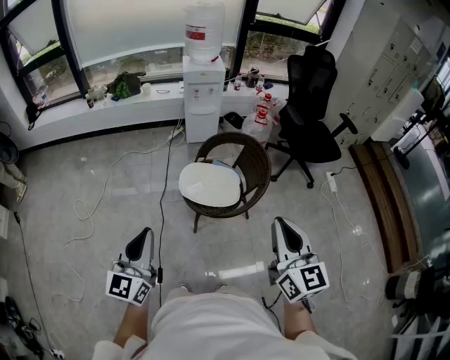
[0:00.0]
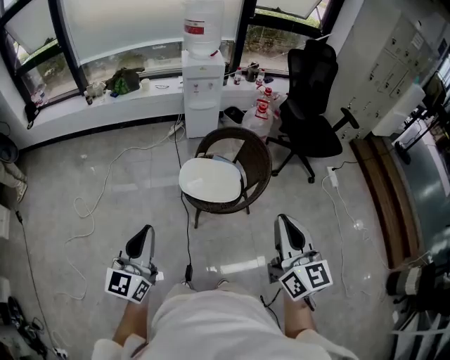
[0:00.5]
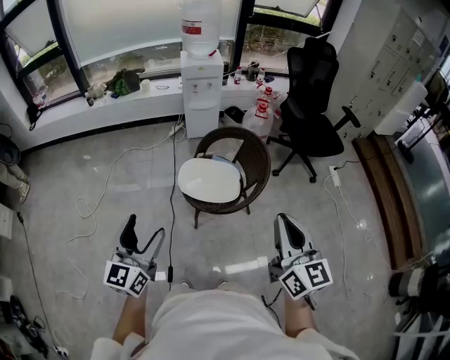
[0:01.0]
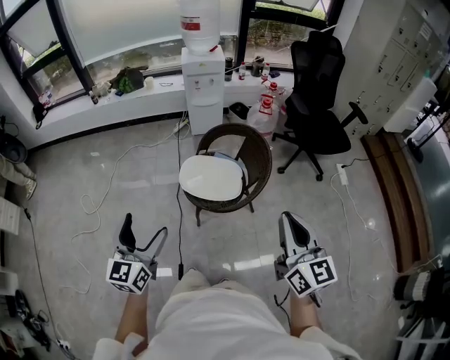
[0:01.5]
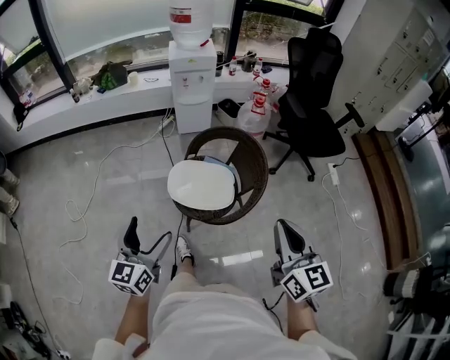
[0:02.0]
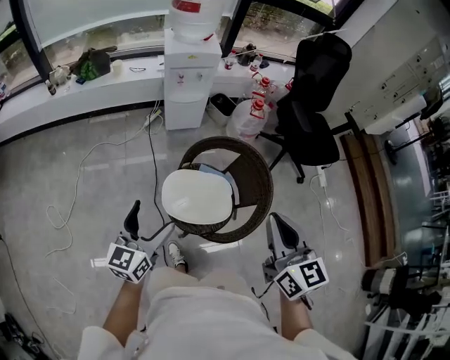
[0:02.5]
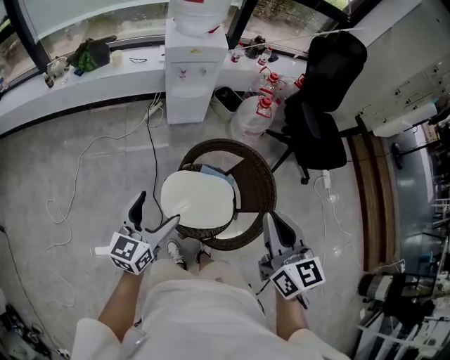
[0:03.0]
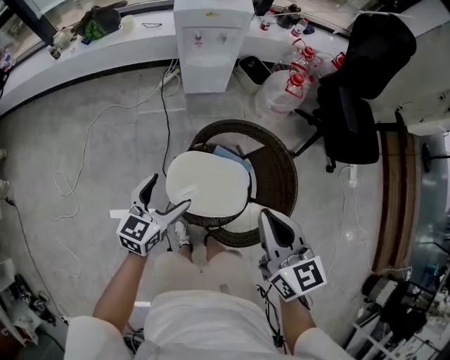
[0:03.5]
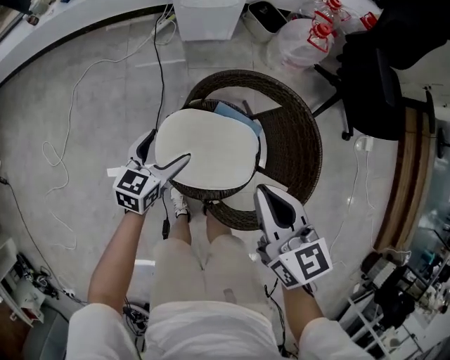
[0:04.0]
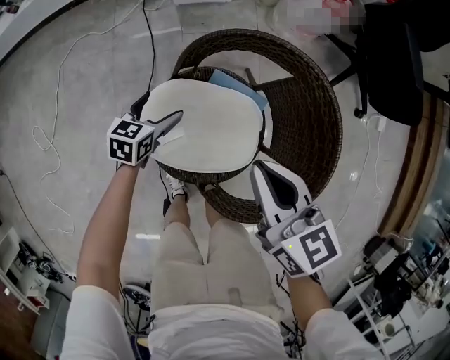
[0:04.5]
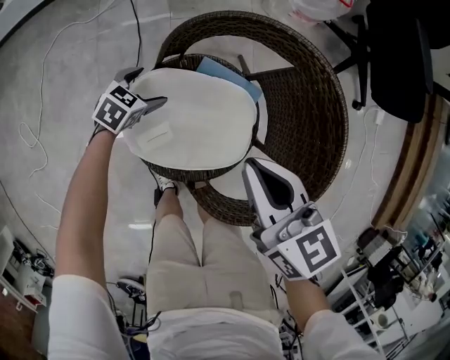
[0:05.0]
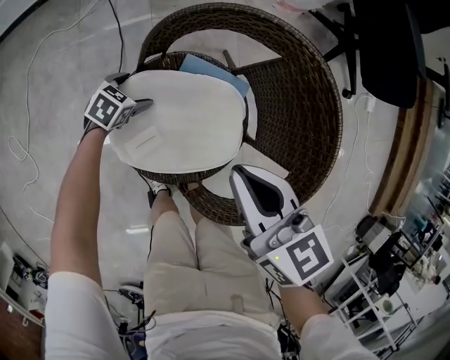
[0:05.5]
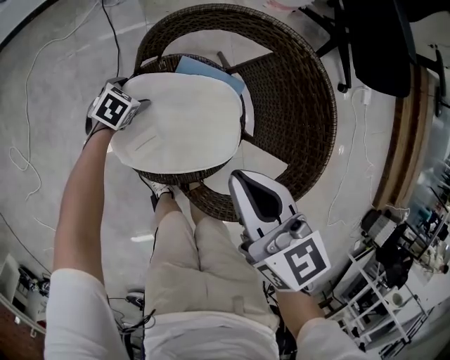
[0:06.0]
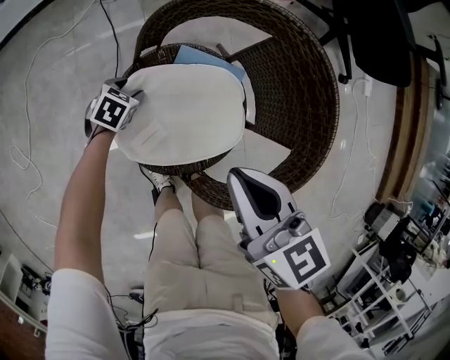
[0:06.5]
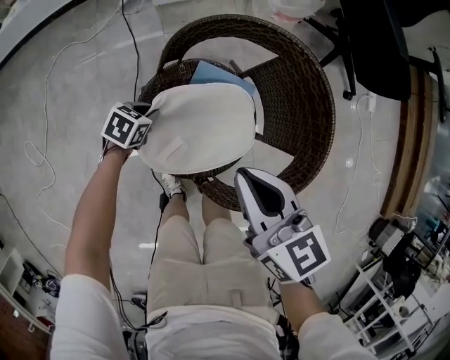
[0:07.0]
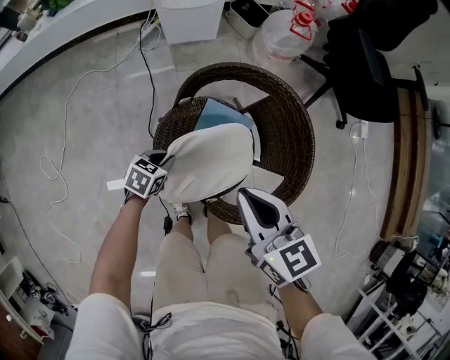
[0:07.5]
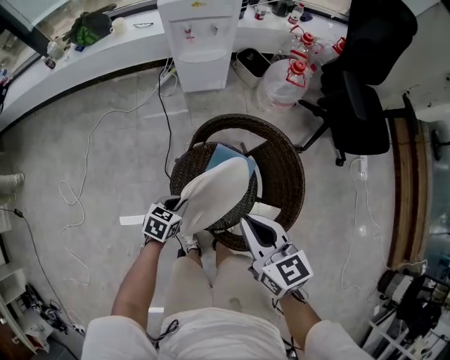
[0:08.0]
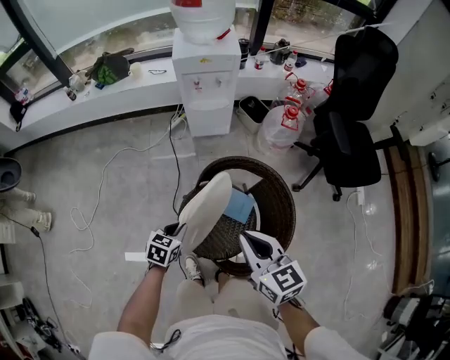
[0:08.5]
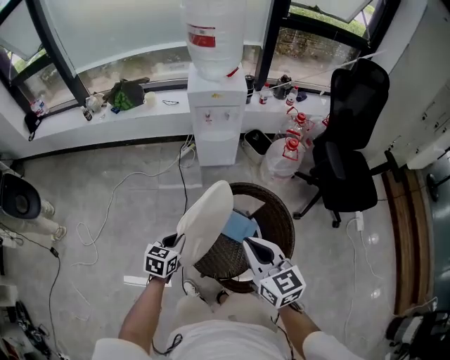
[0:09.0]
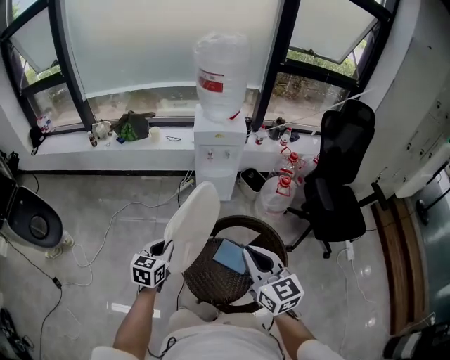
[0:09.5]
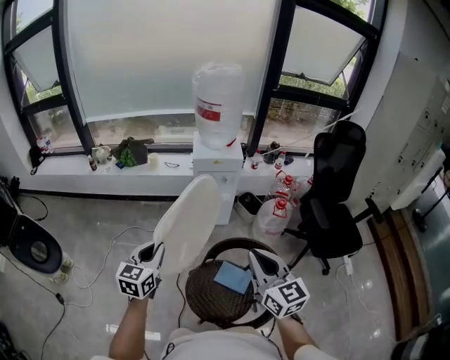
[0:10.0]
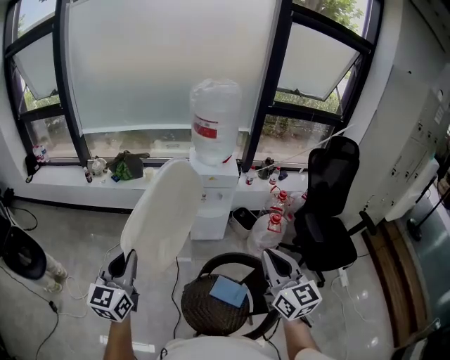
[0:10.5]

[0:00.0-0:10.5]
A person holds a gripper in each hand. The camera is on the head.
0:00.0 to 0:02.0: The left gripper shifts roughly 15 cm forward and downward, and opens up, while the right gripper heads forward, to the right and downward, covering about 15 cm.
0:02.0 to 0:04.0: Both grippers move forward and downward, about 50 cm. The right gripper rotates approximately 30 degrees, while the left gripper swivels roughly 30 degrees.
0:04.0 to 0:06.5: The right gripper goes some 10 cm downward, while the left gripper shifts some 25 cm downward, tilts its fingers roughly 40 degrees downward, and closes.
0:06.5 to 0:08.5: The left gripper moves upward, approximately 30 cm, changes its angle by about 30 degrees, and closes up. Meanwhile the right gripper is displaced upward by about 20 cm.
0:08.5 to 0:10.5: The right gripper travels upward by about 25 cm, and swivels roughly 30 degrees, while the left gripper is displaced upward and to the left by about 50 cm, and angles its fingers upward, by approximately 50 degrees.

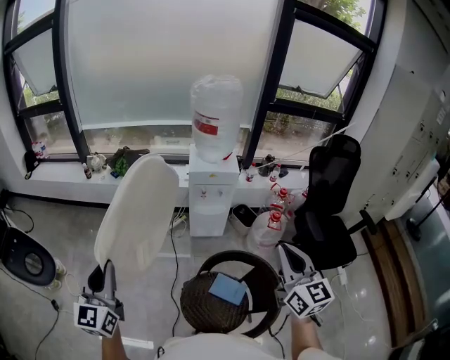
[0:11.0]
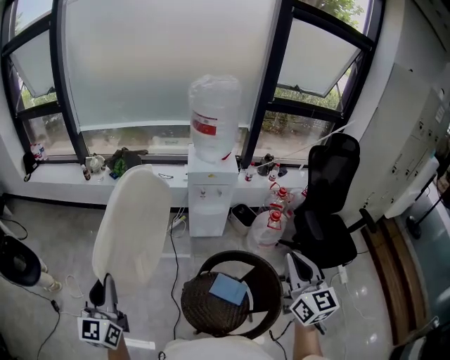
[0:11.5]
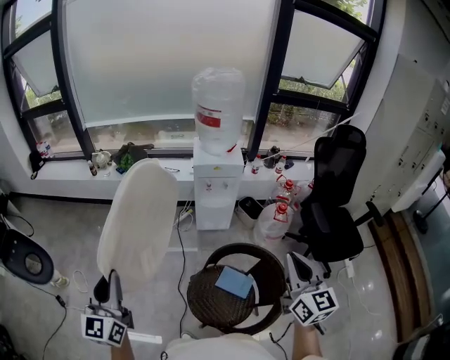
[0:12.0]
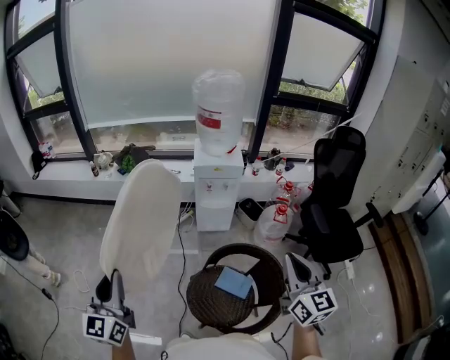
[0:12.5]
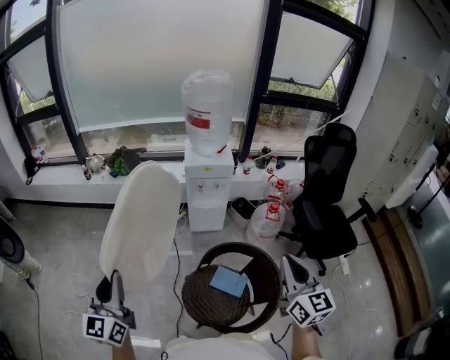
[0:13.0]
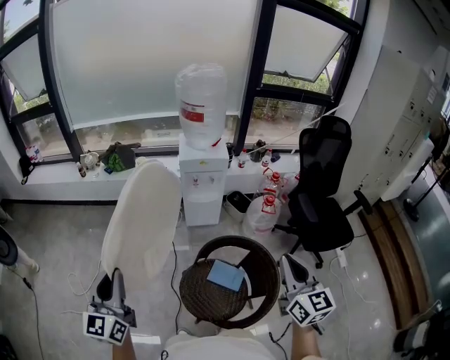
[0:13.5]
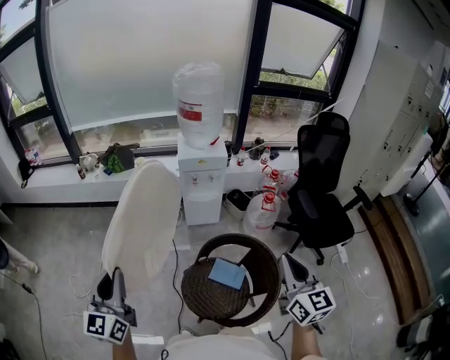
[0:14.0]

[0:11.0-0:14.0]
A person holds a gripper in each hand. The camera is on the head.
0:11.0 to 0:12.5: The left gripper shifts approximately 5 cm backward. Meanwhile the right gripper ends up roughly 5 cm from where it was.
0:12.5 to 0:14.0: The grippers move only a little.

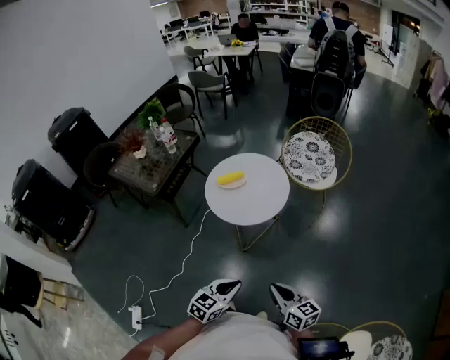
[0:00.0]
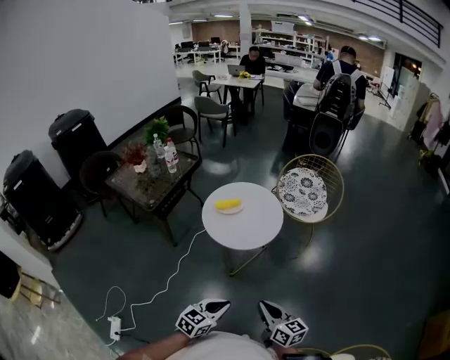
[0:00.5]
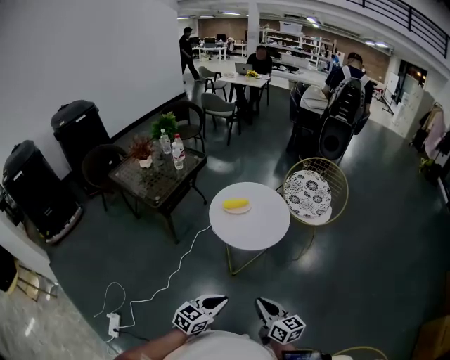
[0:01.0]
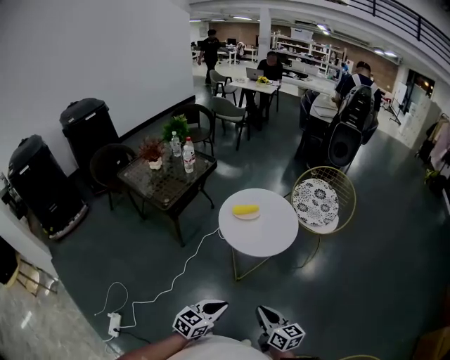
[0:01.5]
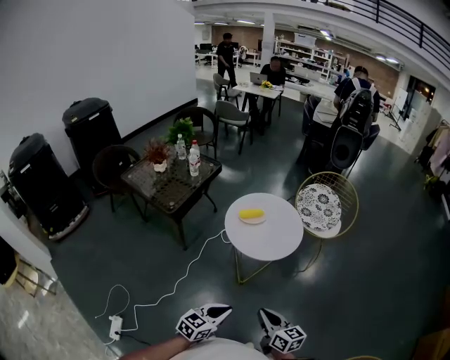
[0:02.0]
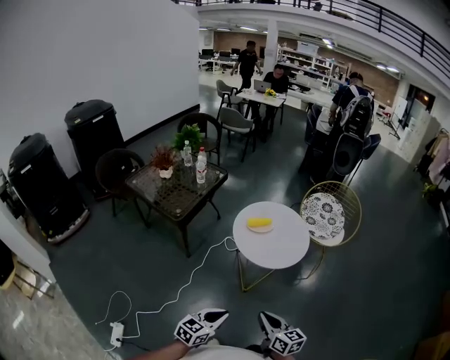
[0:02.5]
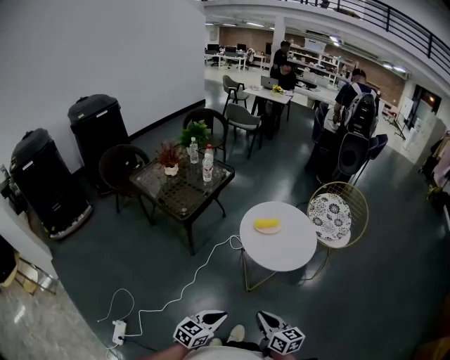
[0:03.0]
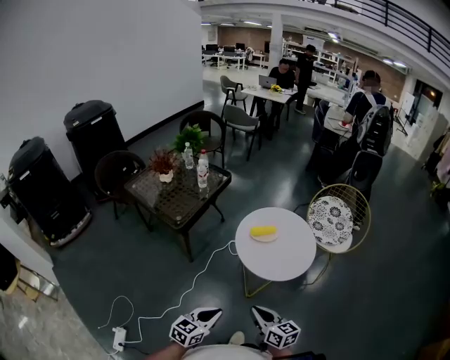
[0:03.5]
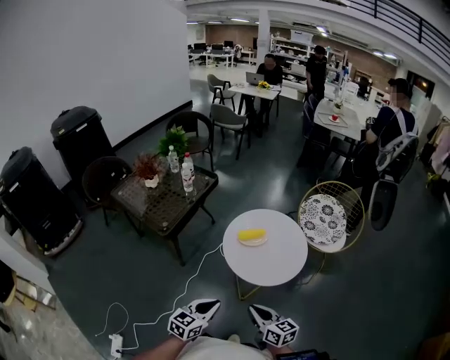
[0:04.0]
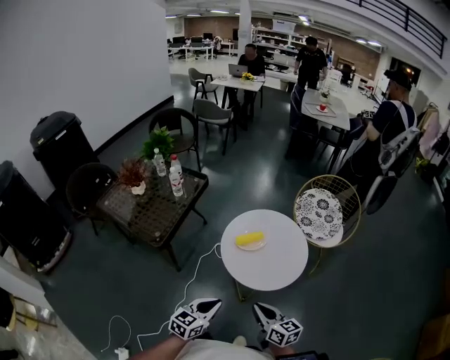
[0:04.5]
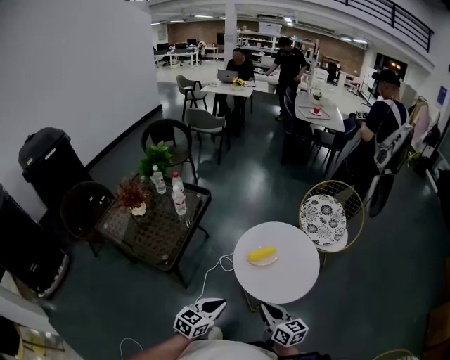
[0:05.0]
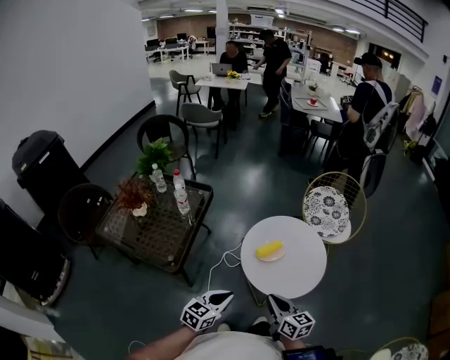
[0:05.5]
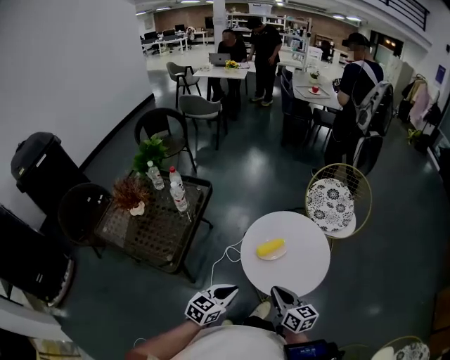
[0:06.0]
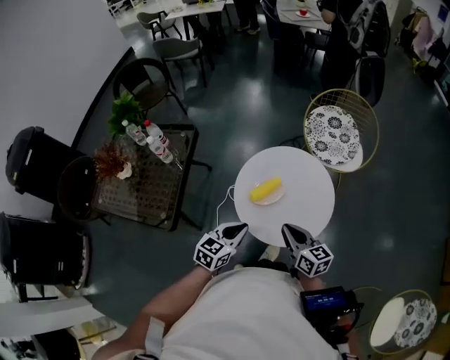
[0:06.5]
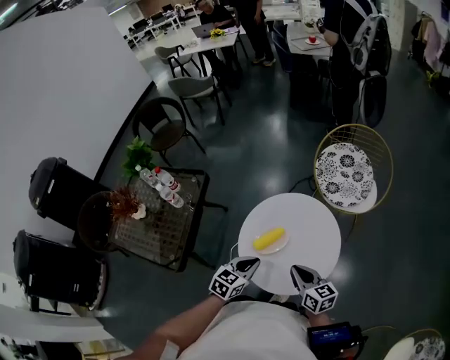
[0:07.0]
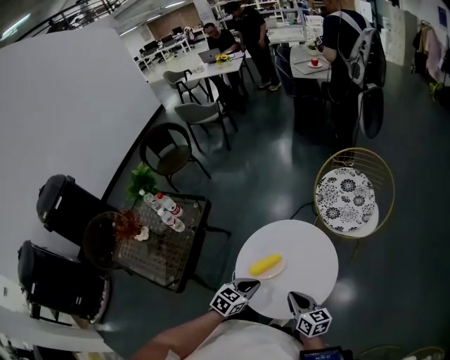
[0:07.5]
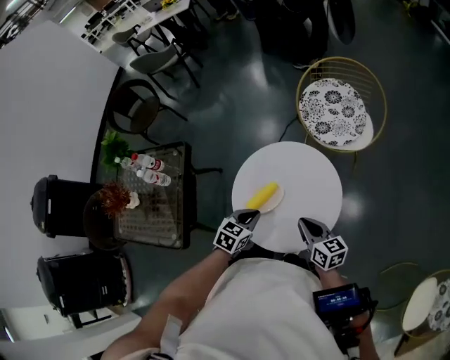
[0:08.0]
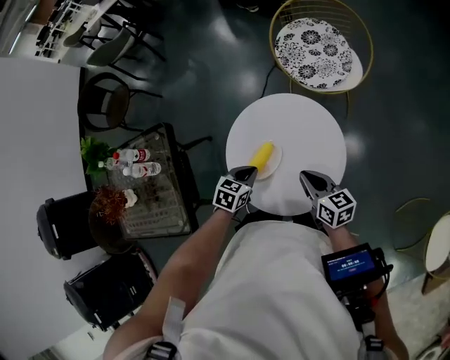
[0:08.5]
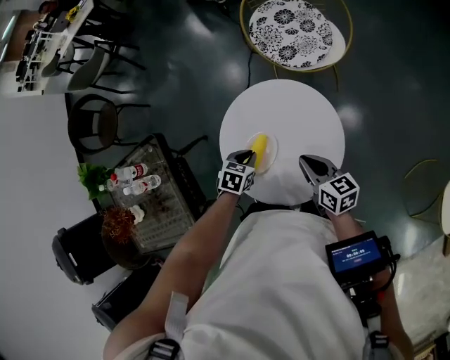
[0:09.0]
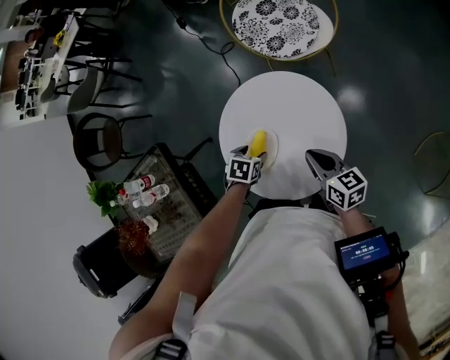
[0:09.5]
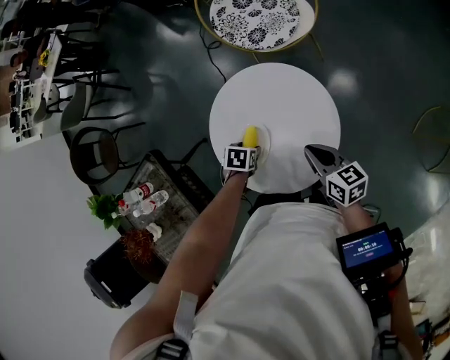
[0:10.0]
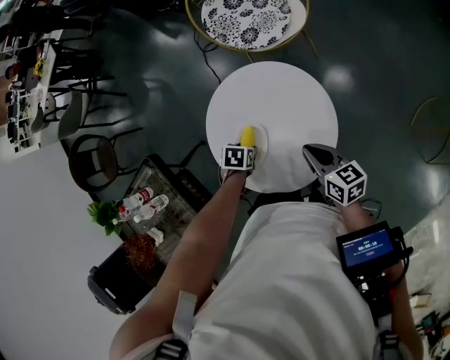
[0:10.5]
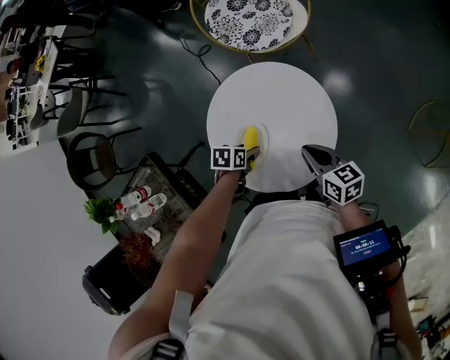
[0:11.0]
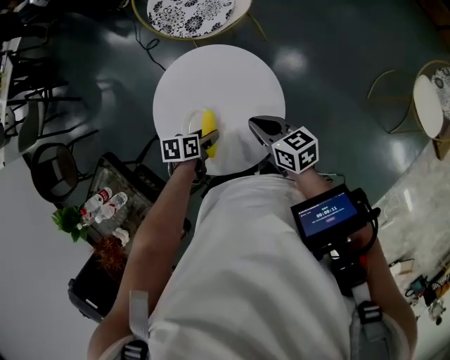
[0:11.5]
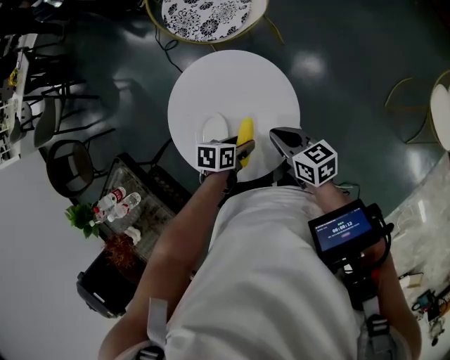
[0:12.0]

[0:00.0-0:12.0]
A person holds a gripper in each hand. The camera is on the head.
0:00.0 to 0:02.0: The right gripper shifts about 15 cm to the left. Meanwhile the left gripper is displaced to the left and backward by about 15 cm.
0:02.0 to 0:04.0: Both grippers travel together forward and to the left, roughly 20 cm.
0:04.0 to 0:06.0: The grippers both shift forward and to the left by some 20 cm. The right gripper changes its angle by some 20 degrees, while the left gripper rotates some 20 degrees.
0:06.0 to 0:08.0: The two grippers go approximately 25 cm forward, to the right and downward. The left gripper turns by approximately 30 degrees.
0:08.0 to 0:10.0: The left gripper heads downward, covering approximately 15 cm, angles its fingers downward, by about 30 degrees, and opens up, while the right gripper swivels about 30 degrees.
0:10.0 to 0:12.0: The left gripper changes place by roughly 15 cm, and swivels approximately 30 degrees.

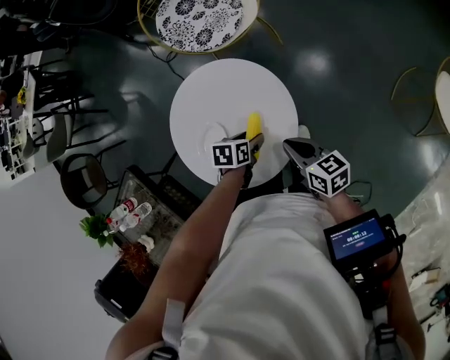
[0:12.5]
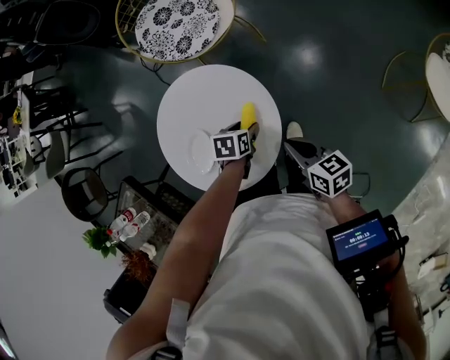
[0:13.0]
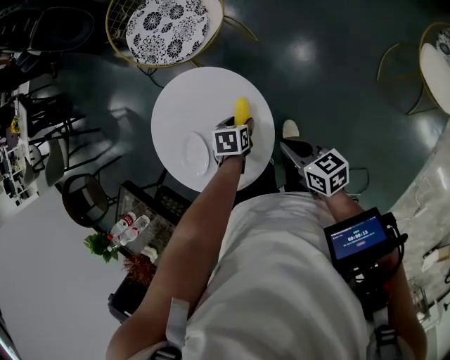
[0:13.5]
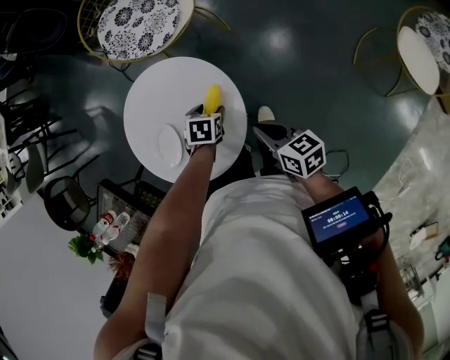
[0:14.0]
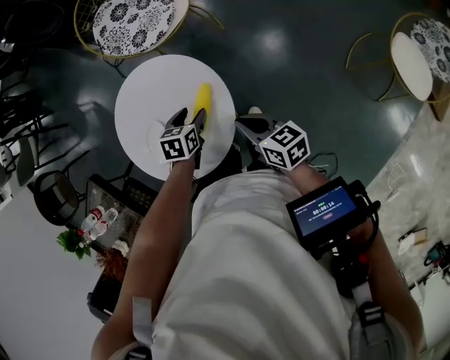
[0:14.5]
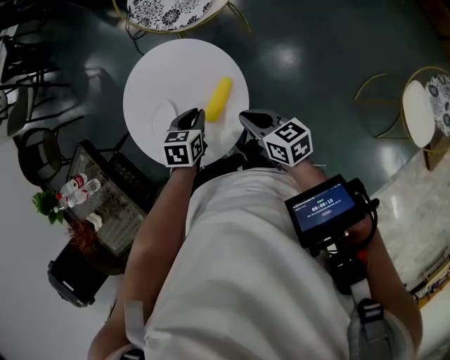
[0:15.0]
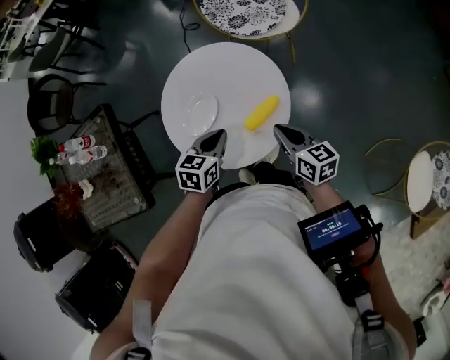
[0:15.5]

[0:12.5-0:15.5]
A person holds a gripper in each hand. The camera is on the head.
0:12.5 to 0:14.0: The right gripper heads to the right, covering some 10 cm, while the left gripper is displaced to the right and forward by approximately 10 cm, and rotates approximately 20 degrees.
0:14.0 to 0:15.5: The left gripper goes approximately 20 cm upward, to the left and backward, turns by some 40 degrees, and closes. The right gripper is displaced to the left by some 5 cm, and swivels some 20 degrees.
